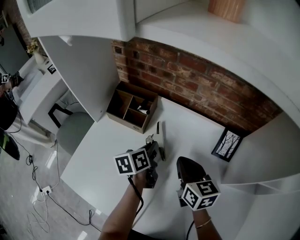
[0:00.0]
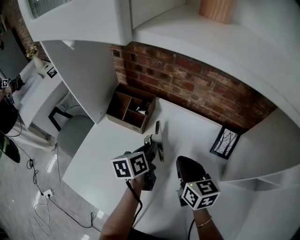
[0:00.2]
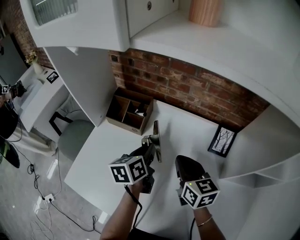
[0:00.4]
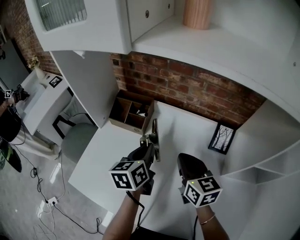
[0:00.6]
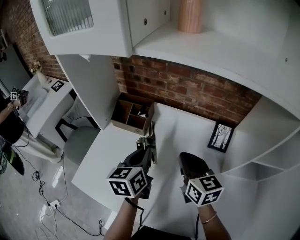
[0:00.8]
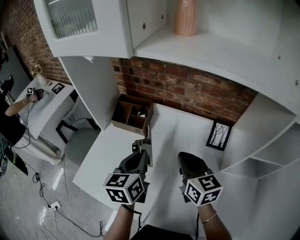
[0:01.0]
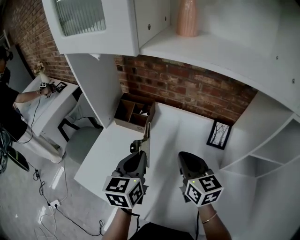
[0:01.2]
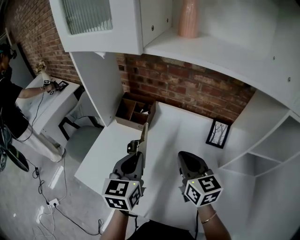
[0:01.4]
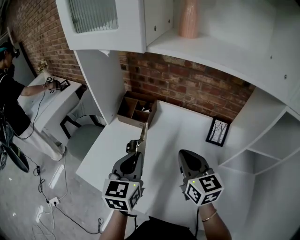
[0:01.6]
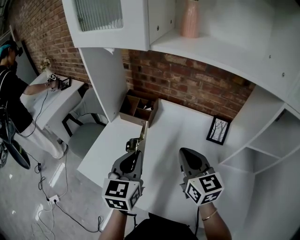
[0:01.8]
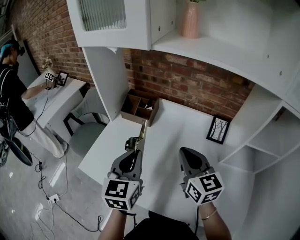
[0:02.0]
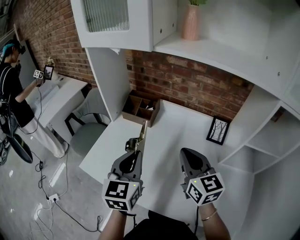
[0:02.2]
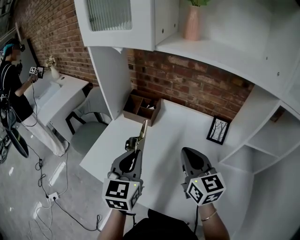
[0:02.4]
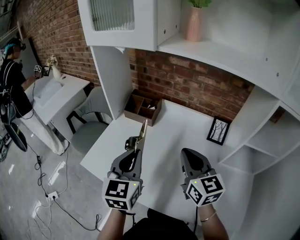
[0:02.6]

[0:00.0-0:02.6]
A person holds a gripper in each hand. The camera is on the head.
0:00.0 to 0:01.2: The right gripper moves upward and backward, roughly 10 cm, while the left gripper shifts about 20 cm upward and backward, and changes its angle by some 40 degrees.
0:01.2 to 0:02.6: Both grippers travel together backward, roughly 10 cm.

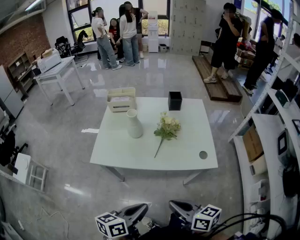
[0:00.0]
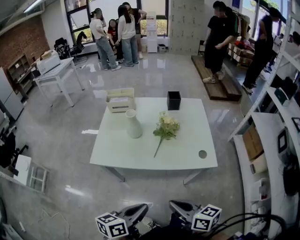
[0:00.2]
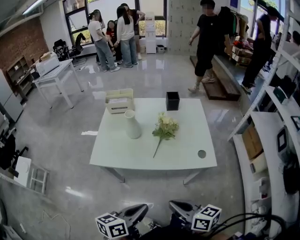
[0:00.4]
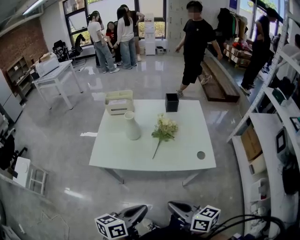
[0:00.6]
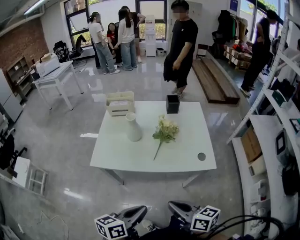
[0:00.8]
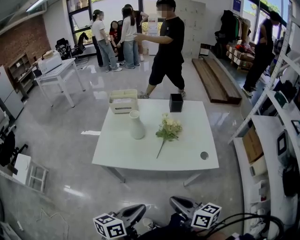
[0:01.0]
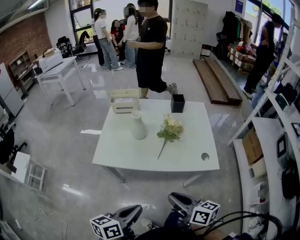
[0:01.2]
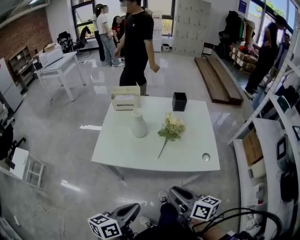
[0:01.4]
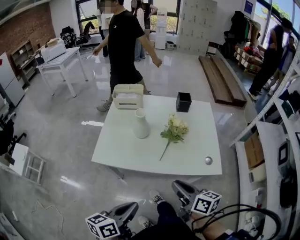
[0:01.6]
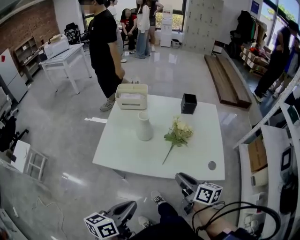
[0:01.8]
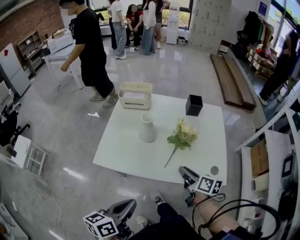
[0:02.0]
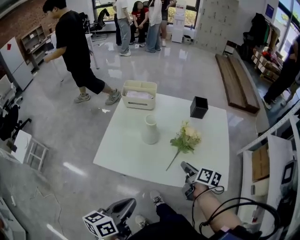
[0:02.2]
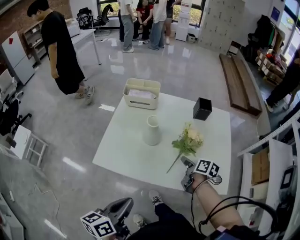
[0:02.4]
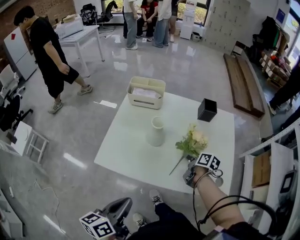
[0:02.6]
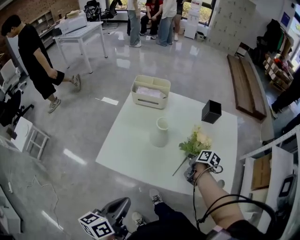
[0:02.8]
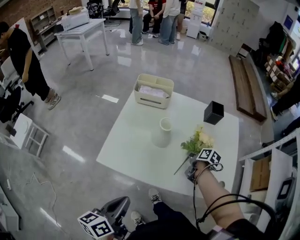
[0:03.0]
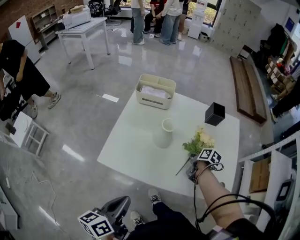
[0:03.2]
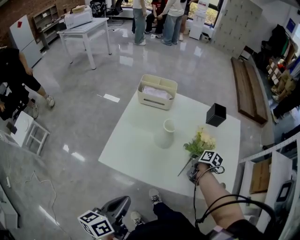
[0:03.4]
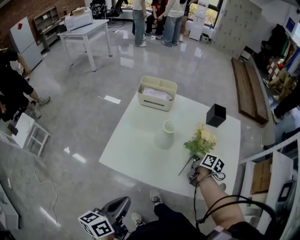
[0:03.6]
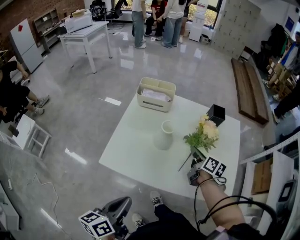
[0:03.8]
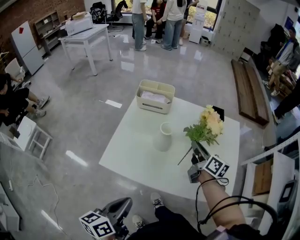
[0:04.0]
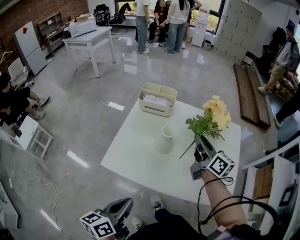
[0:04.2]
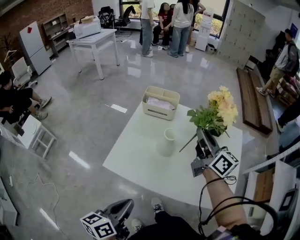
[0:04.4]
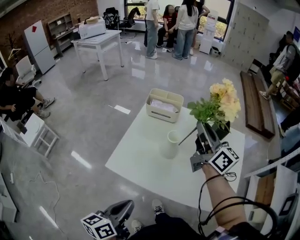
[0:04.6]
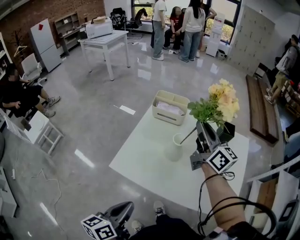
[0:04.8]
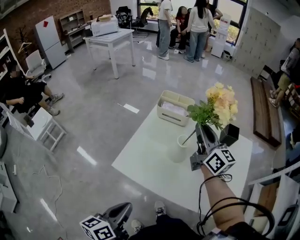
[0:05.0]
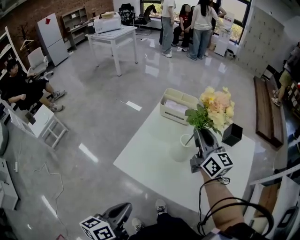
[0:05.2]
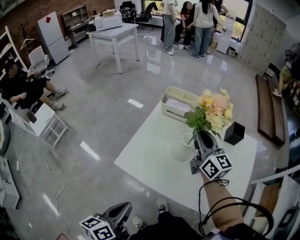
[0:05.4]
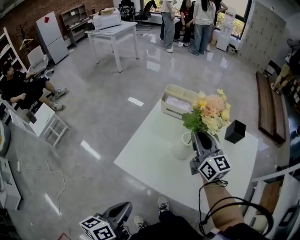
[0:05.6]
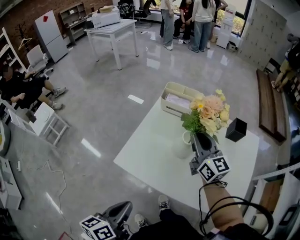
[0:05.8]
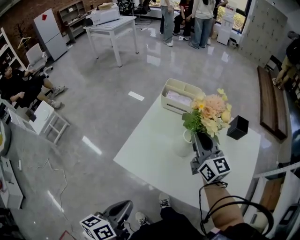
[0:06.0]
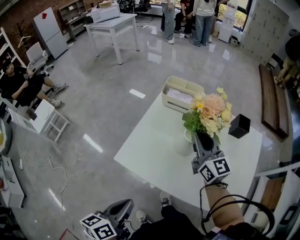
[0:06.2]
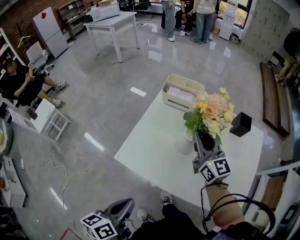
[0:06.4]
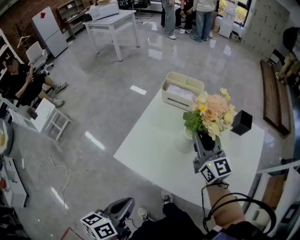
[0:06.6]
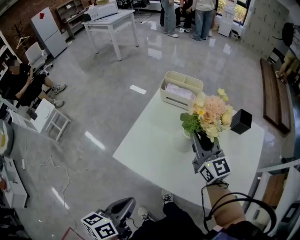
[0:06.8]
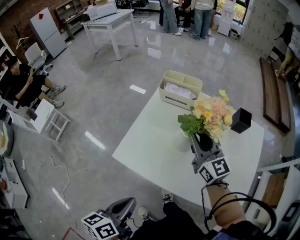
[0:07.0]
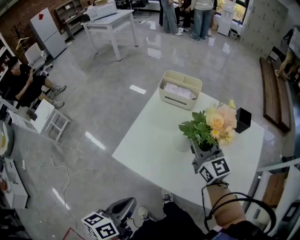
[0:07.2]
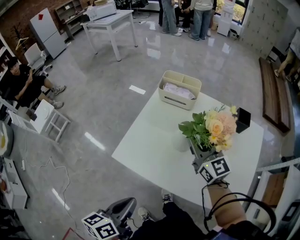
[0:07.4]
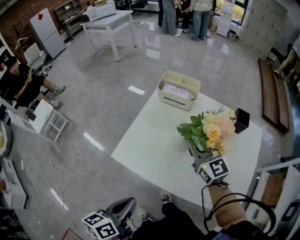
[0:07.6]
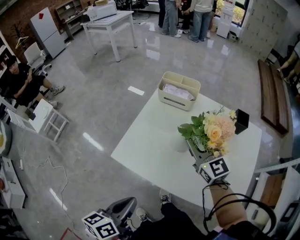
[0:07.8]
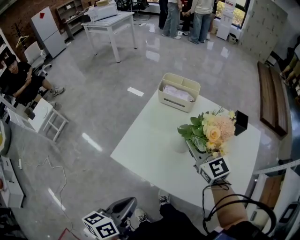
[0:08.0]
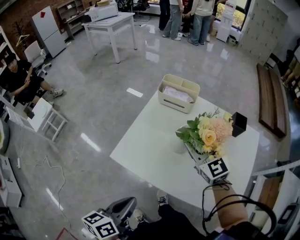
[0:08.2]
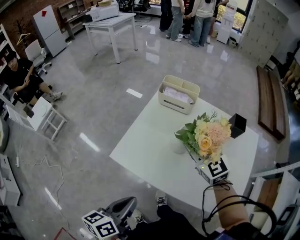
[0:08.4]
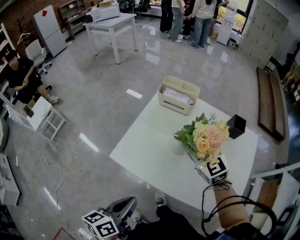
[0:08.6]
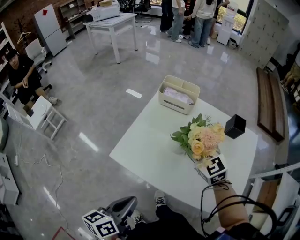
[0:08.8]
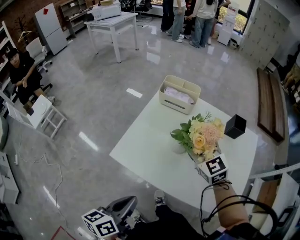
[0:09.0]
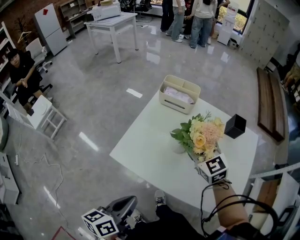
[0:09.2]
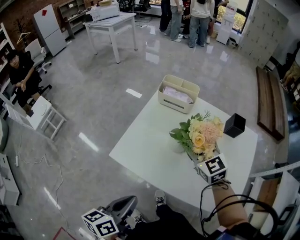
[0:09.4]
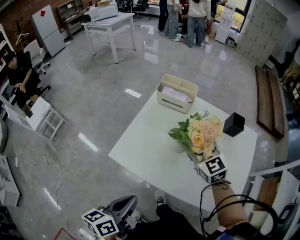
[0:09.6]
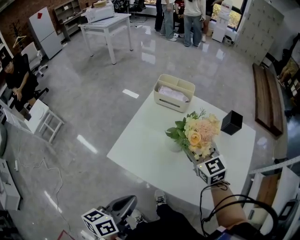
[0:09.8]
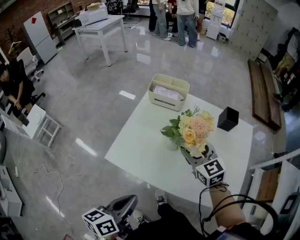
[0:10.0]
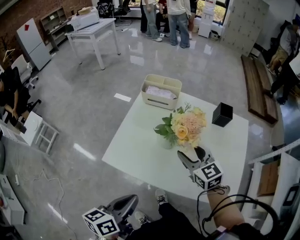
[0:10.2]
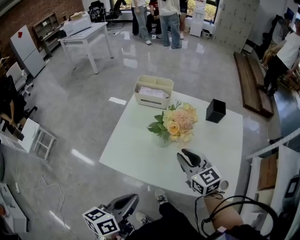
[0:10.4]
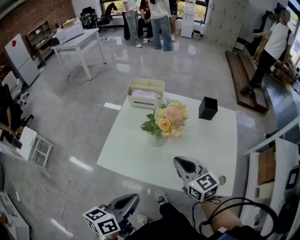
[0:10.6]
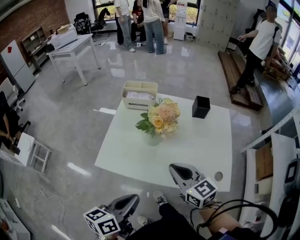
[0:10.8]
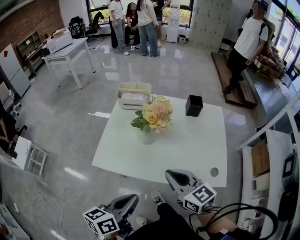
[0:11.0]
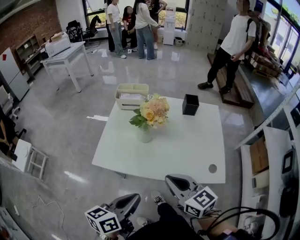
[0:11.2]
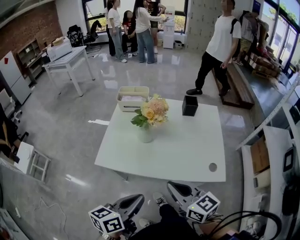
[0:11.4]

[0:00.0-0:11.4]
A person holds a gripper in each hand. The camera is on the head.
0:00.0 to 0:01.4: The left gripper moves about 5 cm. Meanwhile the right gripper moves forward, some 5 cm.
0:01.4 to 0:02.8: The right gripper moves forward and downward, some 35 cm, angles its fingers downward, by some 40 degrees, and opens; the left gripper is displaced forward and to the left by approximately 15 cm, and swivels approximately 20 degrees.
0:02.8 to 0:04.2: The right gripper goes about 25 cm upward, tips its fingers upward by roughly 50 degrees, and closes its fingers.
0:04.2 to 0:05.6: The right gripper heads to the left, covering roughly 10 cm, and rotates some 30 degrees.
0:05.6 to 0:07.2: The grippers make only small movements.
0:07.2 to 0:08.6: The right gripper turns by about 30 degrees, and opens.
0:08.6 to 0:10.0: The right gripper moves some 5 cm.
0:10.0 to 0:11.4: The right gripper heads backward, covering approximately 30 cm, turns by roughly 20 degrees, and closes. The left gripper shifts some 10 cm backward and to the right, and changes its angle by about 20 degrees.

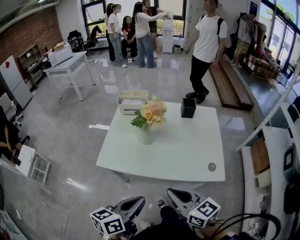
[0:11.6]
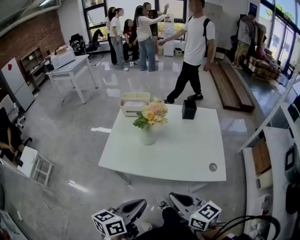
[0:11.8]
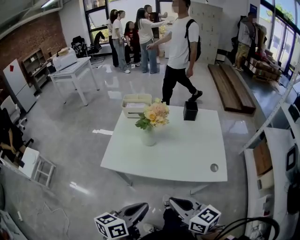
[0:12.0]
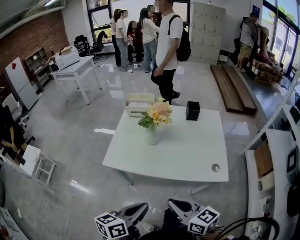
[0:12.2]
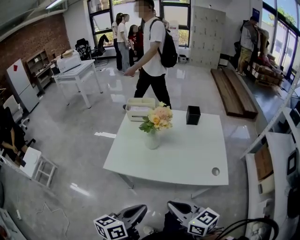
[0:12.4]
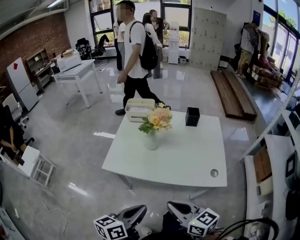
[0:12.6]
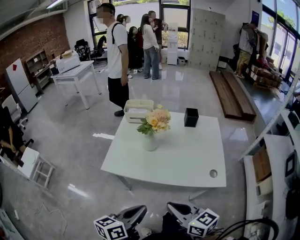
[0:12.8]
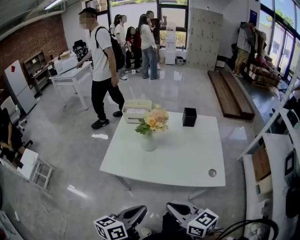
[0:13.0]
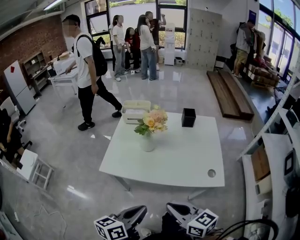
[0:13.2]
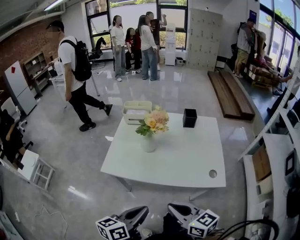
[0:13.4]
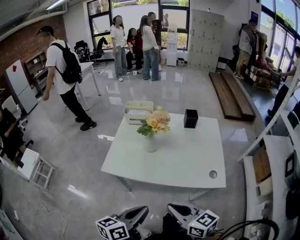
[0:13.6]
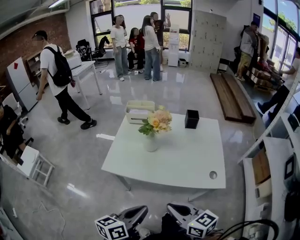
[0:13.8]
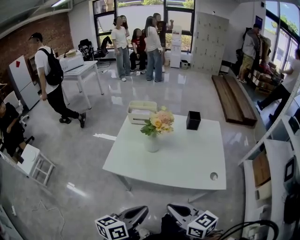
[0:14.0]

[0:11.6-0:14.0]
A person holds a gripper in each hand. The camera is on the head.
0:11.6 to 0:12.8: The right gripper ends up approximately 5 cm from where it was.
0:12.8 to 0:14.0: Both grippers stay about where they are.

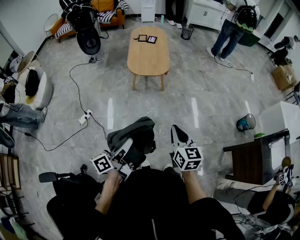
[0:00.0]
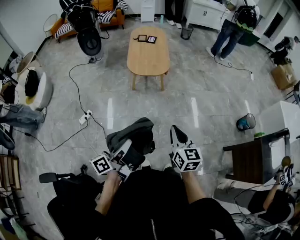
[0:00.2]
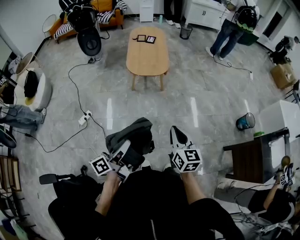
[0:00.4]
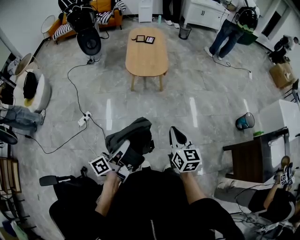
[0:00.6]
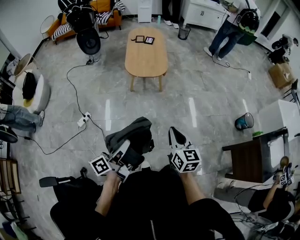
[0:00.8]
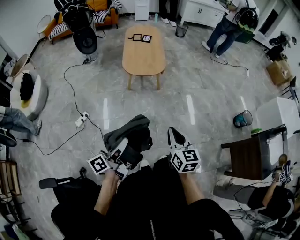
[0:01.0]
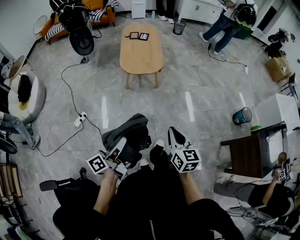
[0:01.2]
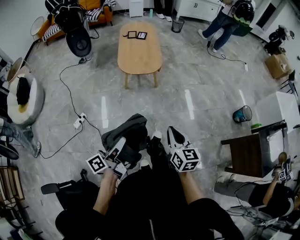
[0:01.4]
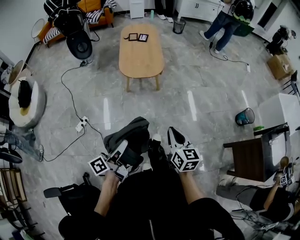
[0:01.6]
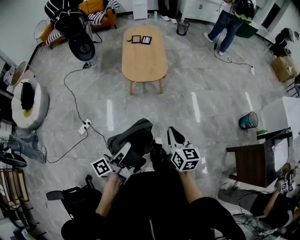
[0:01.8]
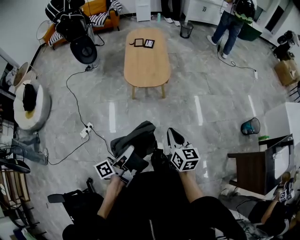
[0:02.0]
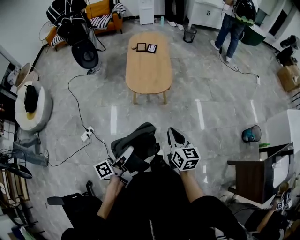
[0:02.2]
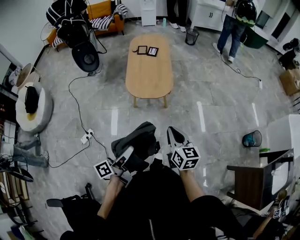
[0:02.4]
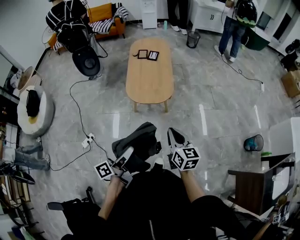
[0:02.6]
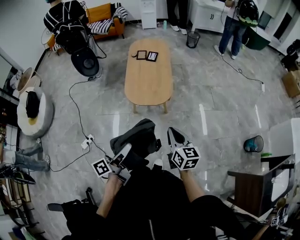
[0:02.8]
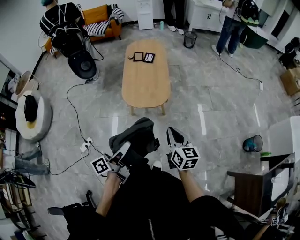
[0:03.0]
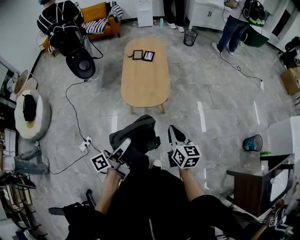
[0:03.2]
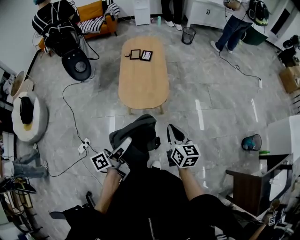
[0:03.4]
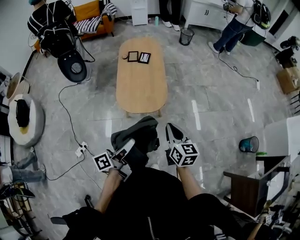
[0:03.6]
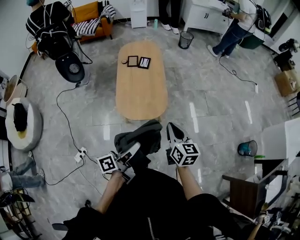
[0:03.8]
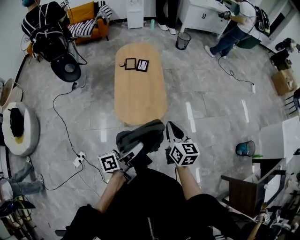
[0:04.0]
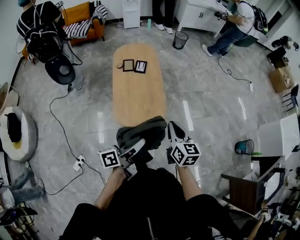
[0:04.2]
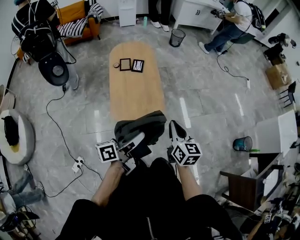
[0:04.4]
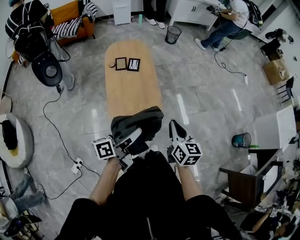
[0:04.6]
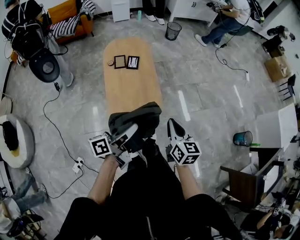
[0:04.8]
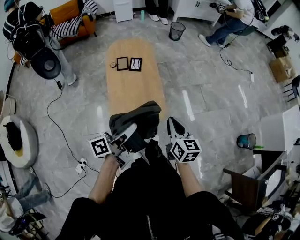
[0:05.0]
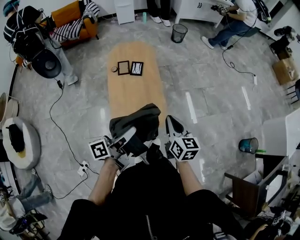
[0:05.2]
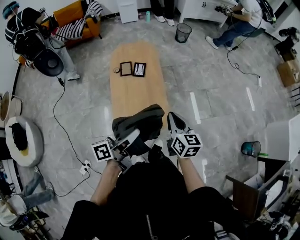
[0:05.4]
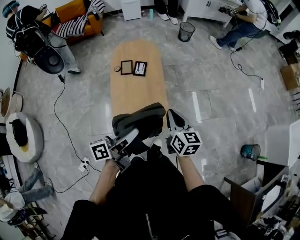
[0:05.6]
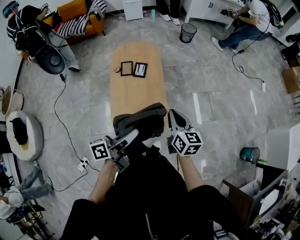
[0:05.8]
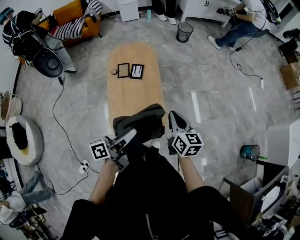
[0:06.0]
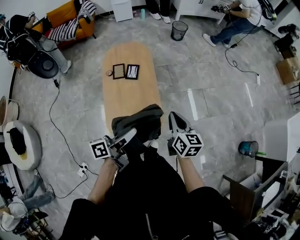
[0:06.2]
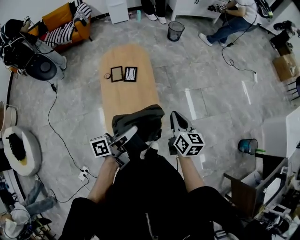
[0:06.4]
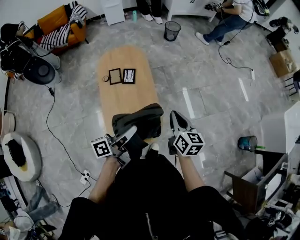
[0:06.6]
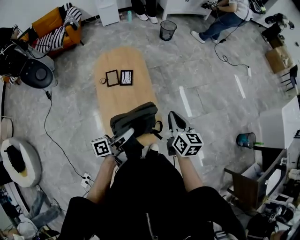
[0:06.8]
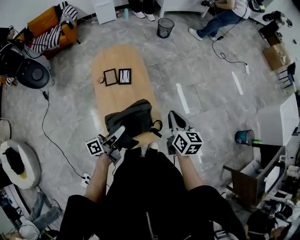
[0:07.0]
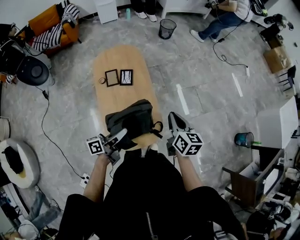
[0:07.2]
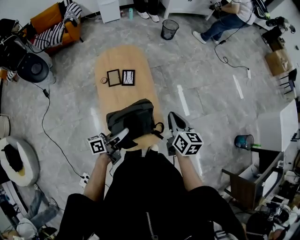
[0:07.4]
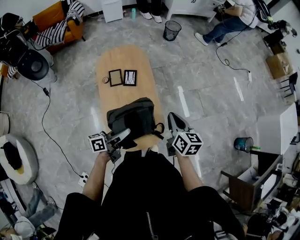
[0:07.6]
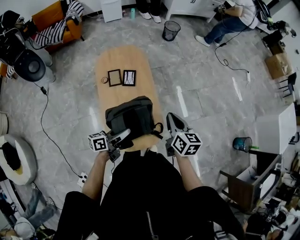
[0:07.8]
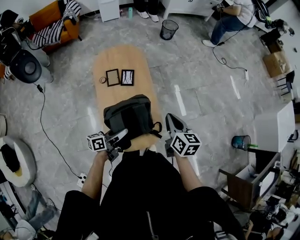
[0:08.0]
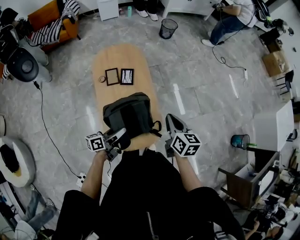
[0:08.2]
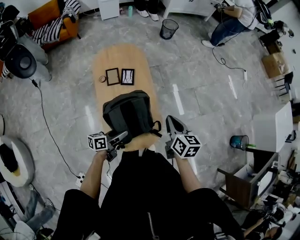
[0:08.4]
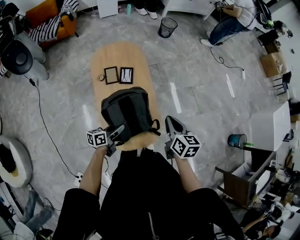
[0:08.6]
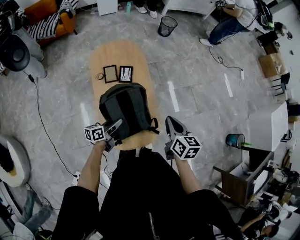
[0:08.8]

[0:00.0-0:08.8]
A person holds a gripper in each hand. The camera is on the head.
0:00.0 to 0:01.4: The left gripper moves approximately 5 cm.
0:01.4 to 0:03.0: The grippers both shift forward by roughly 30 cm.
0:03.0 to 0:04.4: The grippers both shift forward by about 25 cm. The left gripper rotates about 20 degrees.
0:04.4 to 0:05.8: Both grippers move forward, approximately 20 cm.
0:05.8 to 0:07.4: The left gripper travels downward, to the left and forward by some 15 cm. Meanwhile the right gripper travels forward by some 5 cm.
0:07.4 to 0:08.8: The left gripper heads downward and to the left, covering about 15 cm, and opens and closes again.
